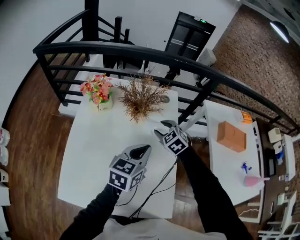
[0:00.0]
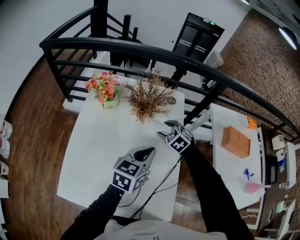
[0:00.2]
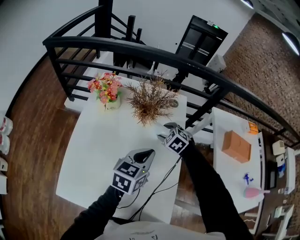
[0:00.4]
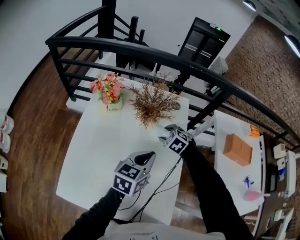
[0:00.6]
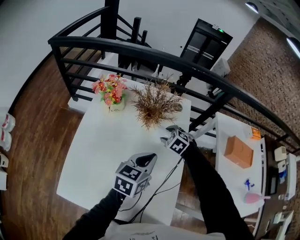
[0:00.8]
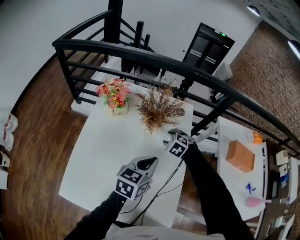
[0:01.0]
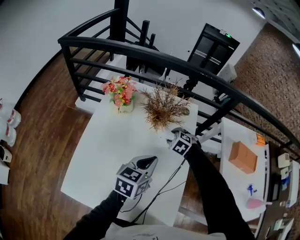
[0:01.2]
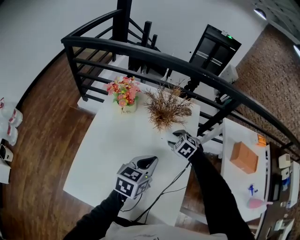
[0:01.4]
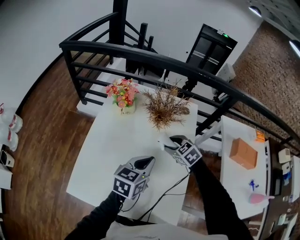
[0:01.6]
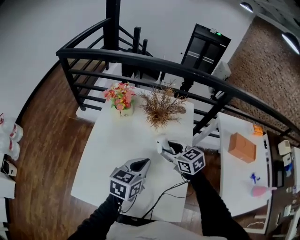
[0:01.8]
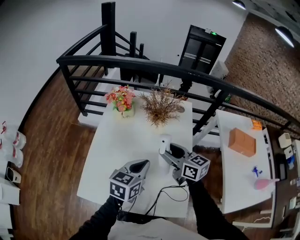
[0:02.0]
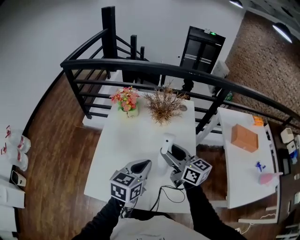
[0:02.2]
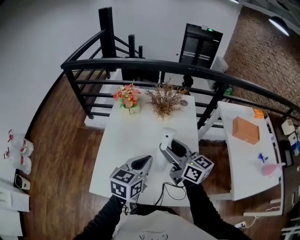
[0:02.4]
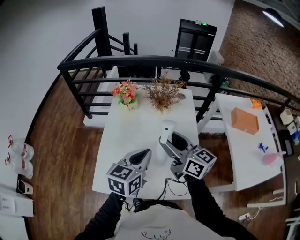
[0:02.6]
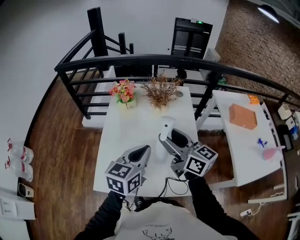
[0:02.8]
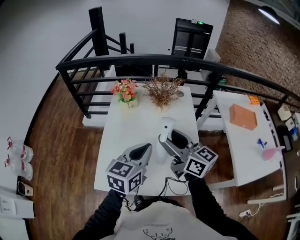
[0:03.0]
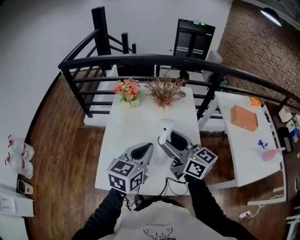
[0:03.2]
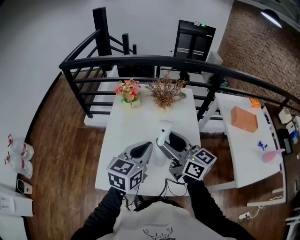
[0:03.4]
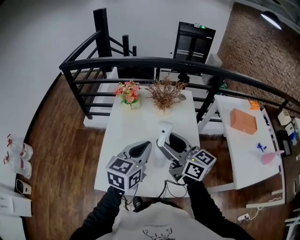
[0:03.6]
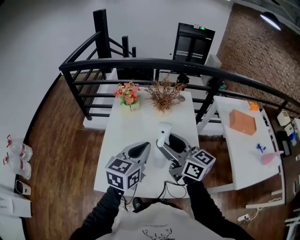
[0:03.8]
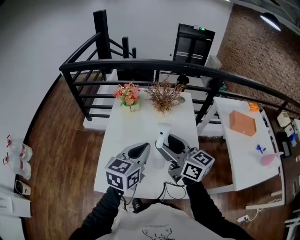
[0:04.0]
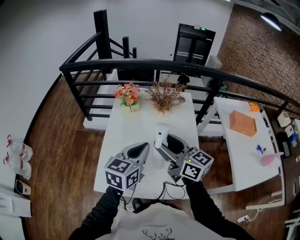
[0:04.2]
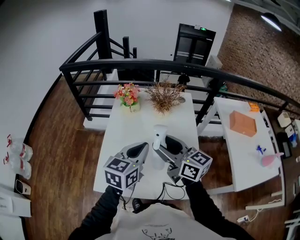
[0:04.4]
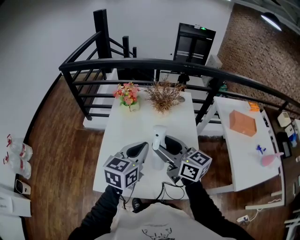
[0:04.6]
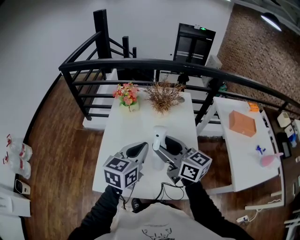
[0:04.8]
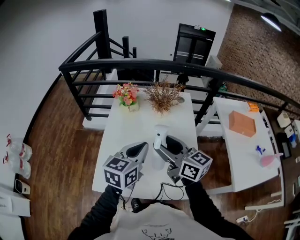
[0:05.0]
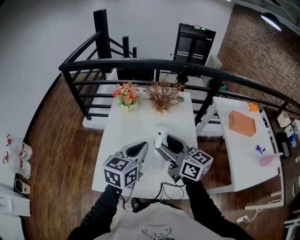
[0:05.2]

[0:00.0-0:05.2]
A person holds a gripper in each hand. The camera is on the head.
0:00.0 to 0:01.8: The left gripper moves to the left and backward, roughly 10 cm; the right gripper shifts roughly 15 cm backward, to the left and upward, and rotates about 40 degrees.
0:01.8 to 0:03.4: Both grippers travel together backward, upward and to the left, about 25 cm. The right gripper points its fingers some 40 degrees further upward.
0:03.4 to 0:05.2: The grippers move only a little.

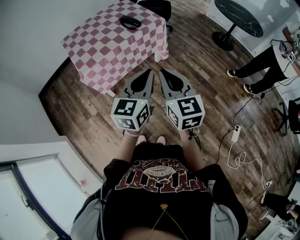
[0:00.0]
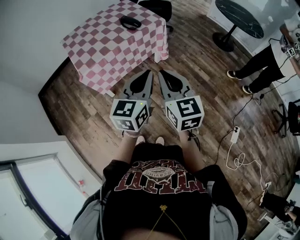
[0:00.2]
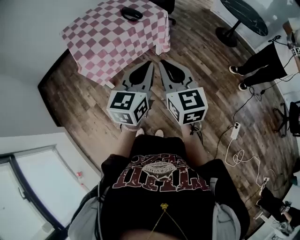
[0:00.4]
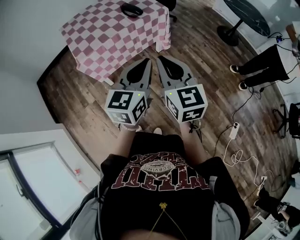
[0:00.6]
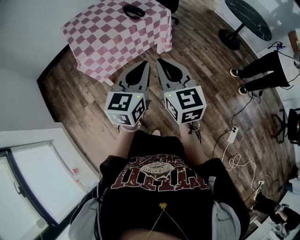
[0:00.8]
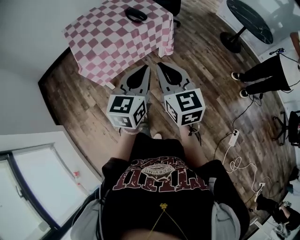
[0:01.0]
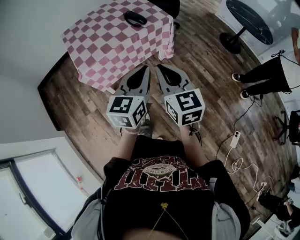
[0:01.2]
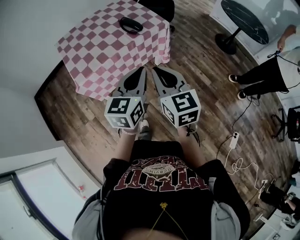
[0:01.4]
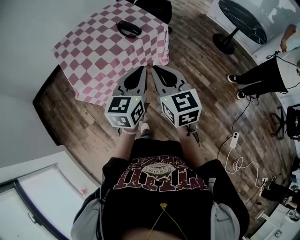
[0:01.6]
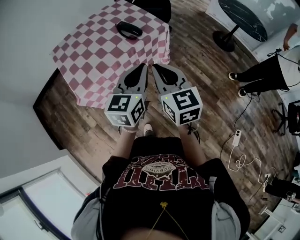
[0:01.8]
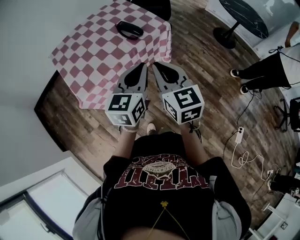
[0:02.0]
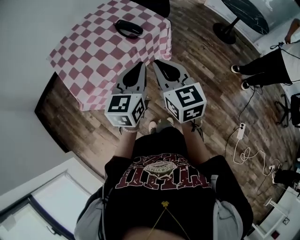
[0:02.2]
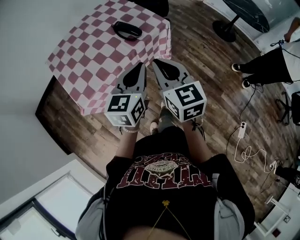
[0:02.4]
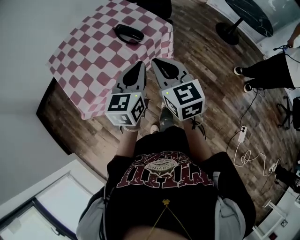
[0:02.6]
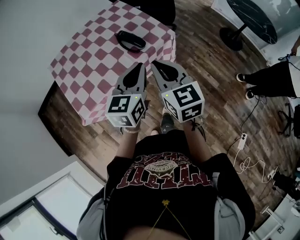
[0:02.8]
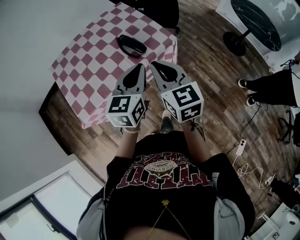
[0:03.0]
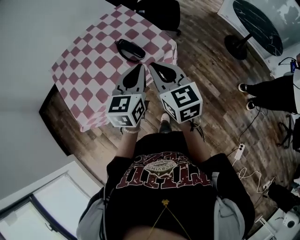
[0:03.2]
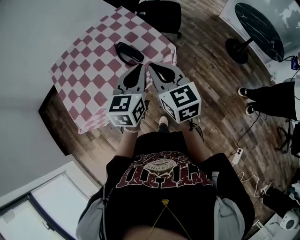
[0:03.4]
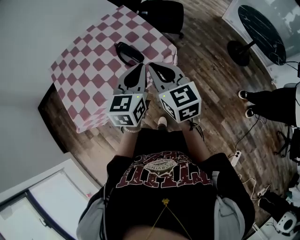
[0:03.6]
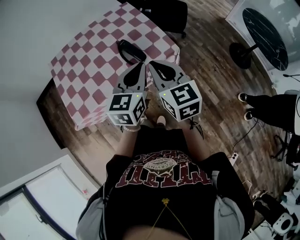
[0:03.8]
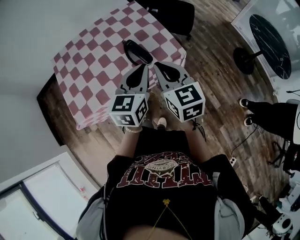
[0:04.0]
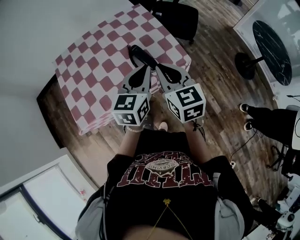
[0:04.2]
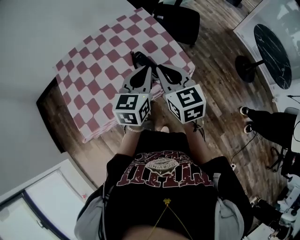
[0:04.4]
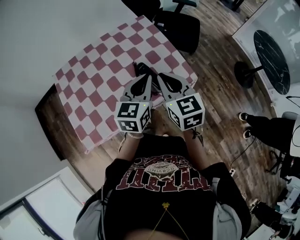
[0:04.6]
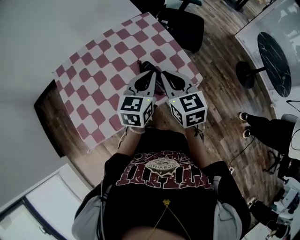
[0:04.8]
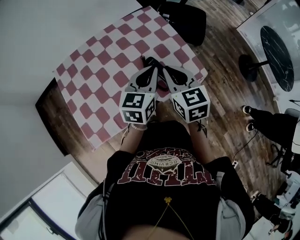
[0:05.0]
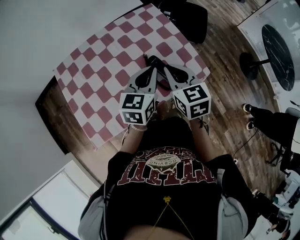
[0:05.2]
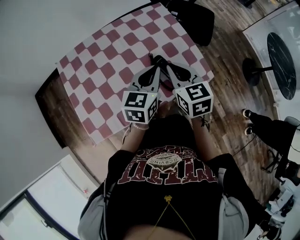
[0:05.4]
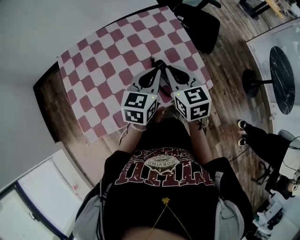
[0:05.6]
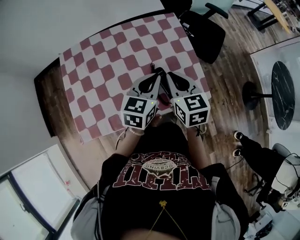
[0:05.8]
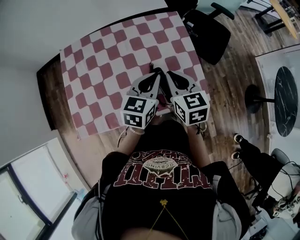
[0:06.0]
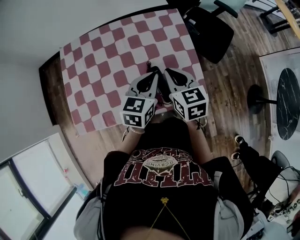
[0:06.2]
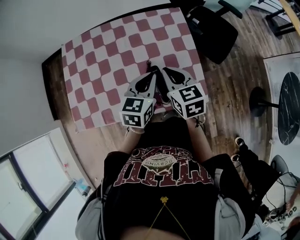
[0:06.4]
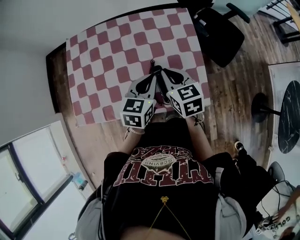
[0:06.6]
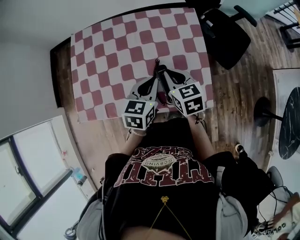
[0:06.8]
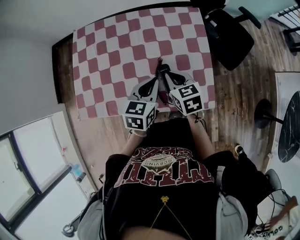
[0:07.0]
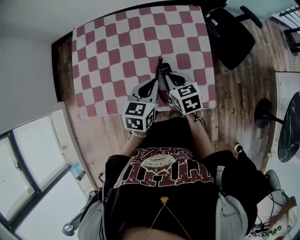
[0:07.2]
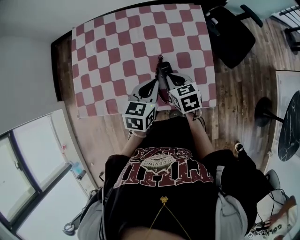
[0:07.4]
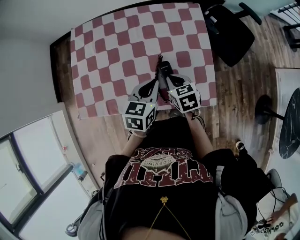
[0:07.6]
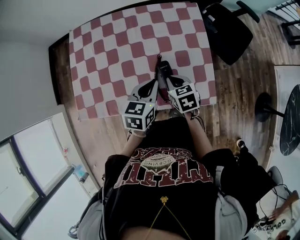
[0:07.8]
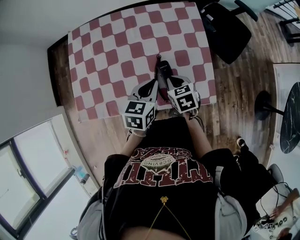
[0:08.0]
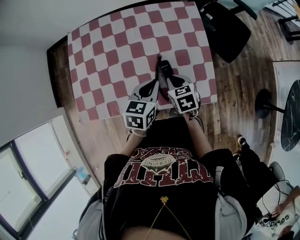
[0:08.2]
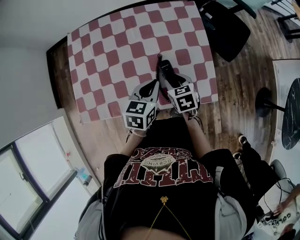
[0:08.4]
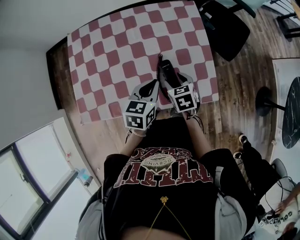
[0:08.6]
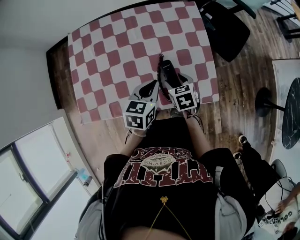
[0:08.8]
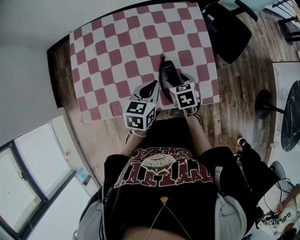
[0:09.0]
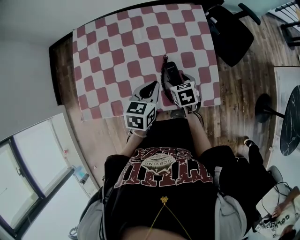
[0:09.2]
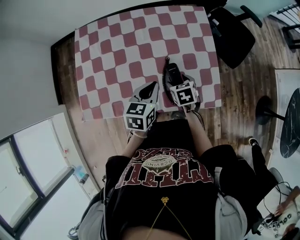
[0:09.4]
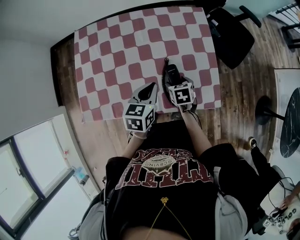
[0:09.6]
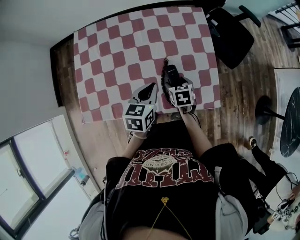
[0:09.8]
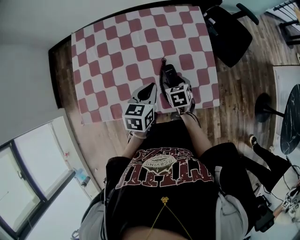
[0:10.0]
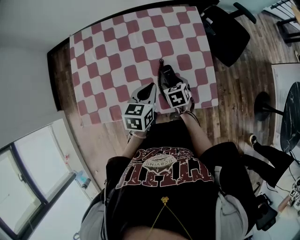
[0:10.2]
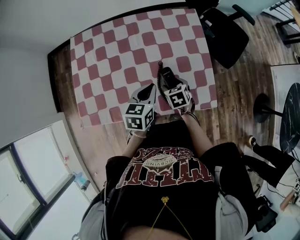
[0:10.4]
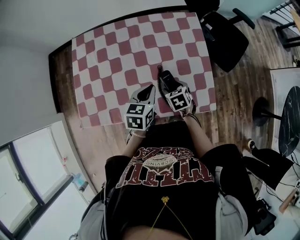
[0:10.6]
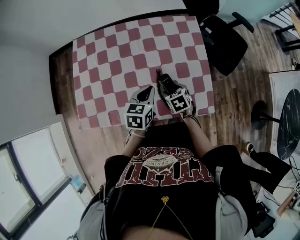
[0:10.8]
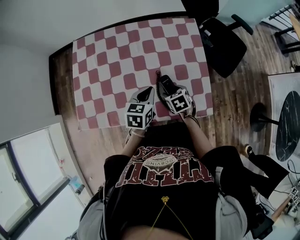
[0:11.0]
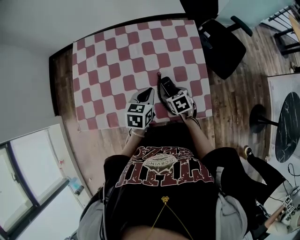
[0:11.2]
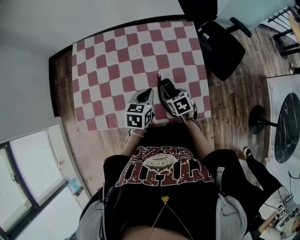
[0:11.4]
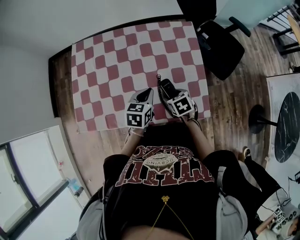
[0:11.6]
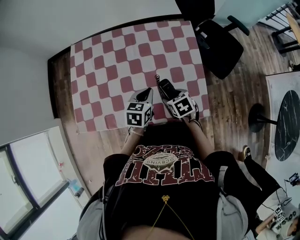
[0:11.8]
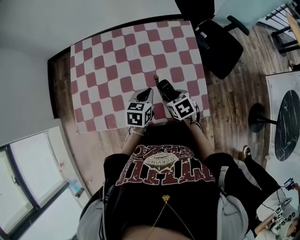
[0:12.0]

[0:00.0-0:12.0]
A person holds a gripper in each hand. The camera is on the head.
0:00.0 to 0:01.6: The two grippers go about 15 cm forward.
0:01.6 to 0:03.0: The grippers both shift forward by approximately 20 cm.
0:03.0 to 0:04.4: The grippers both shift forward by roughly 15 cm.
0:04.4 to 0:06.0: Both grippers move forward and downward, about 15 cm.
0:06.0 to 0:07.6: The left gripper heads downward, covering approximately 5 cm; the right gripper is displaced downward by approximately 15 cm, and changes its angle by roughly 20 degrees.
0:07.6 to 0:09.0: The right gripper opens up.
0:09.0 to 0:10.4: The grippers make only small movements.
0:10.4 to 0:12.0: The right gripper moves upward, about 5 cm.

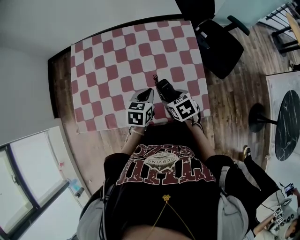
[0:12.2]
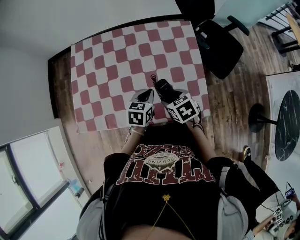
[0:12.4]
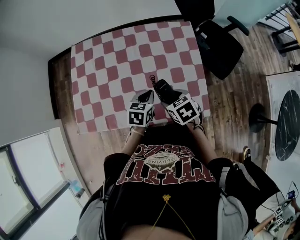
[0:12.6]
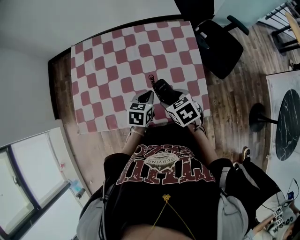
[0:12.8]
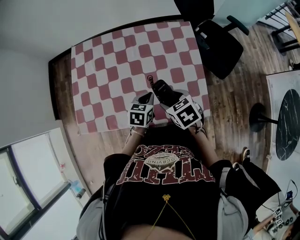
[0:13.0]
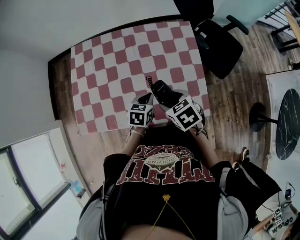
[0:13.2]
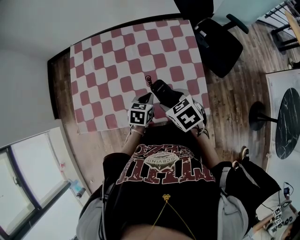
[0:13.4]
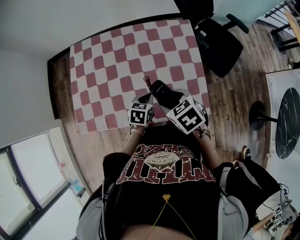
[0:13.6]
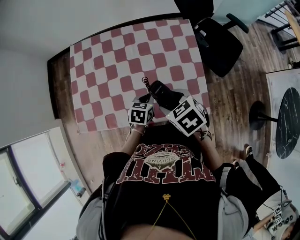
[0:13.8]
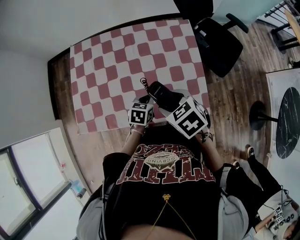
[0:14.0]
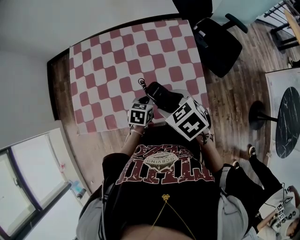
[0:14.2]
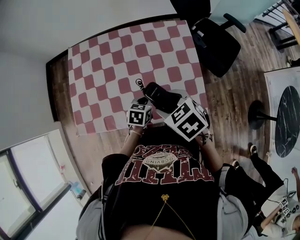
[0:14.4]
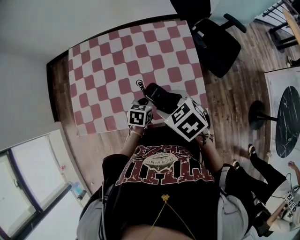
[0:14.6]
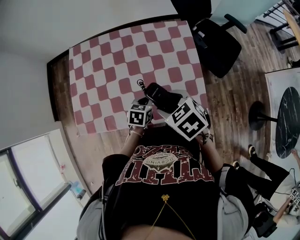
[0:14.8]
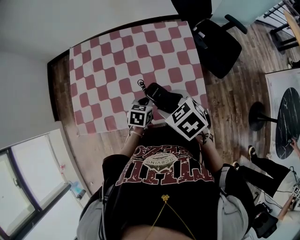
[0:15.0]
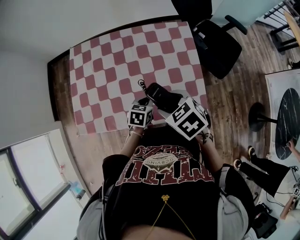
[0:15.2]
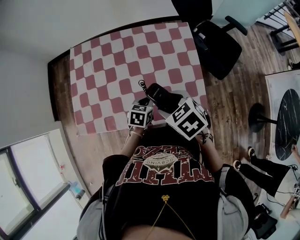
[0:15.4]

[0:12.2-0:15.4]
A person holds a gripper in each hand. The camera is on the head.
0:12.2 to 0:13.8: The right gripper heads upward, covering roughly 10 cm. Meanwhile the left gripper changes place by some 5 cm.
0:13.8 to 0:15.4: There are only small adjustments of the grippers.

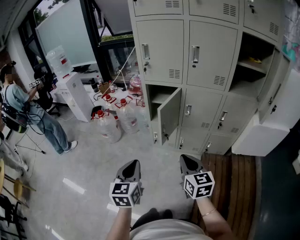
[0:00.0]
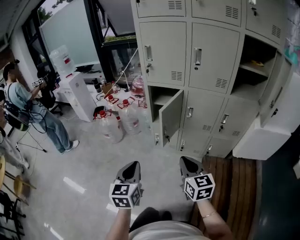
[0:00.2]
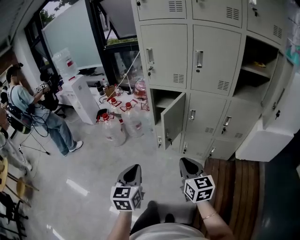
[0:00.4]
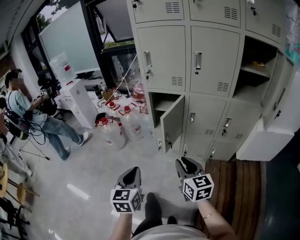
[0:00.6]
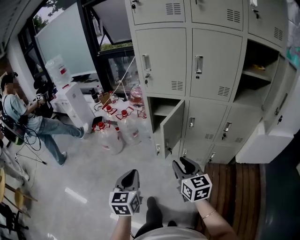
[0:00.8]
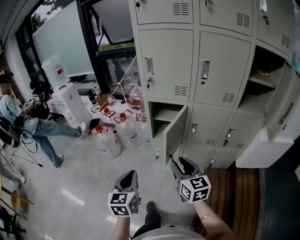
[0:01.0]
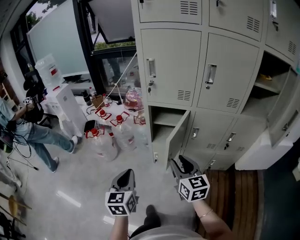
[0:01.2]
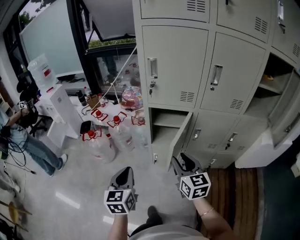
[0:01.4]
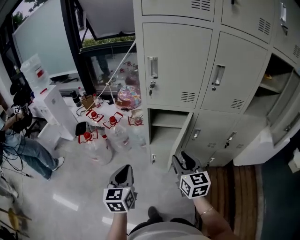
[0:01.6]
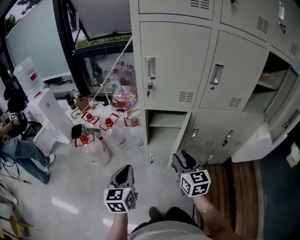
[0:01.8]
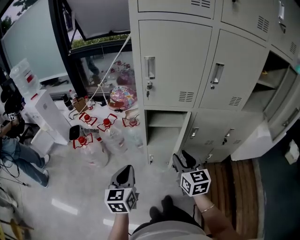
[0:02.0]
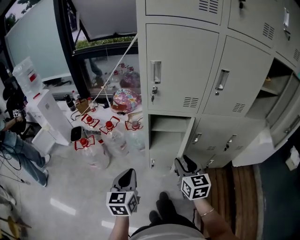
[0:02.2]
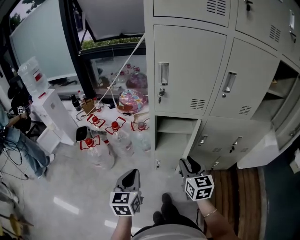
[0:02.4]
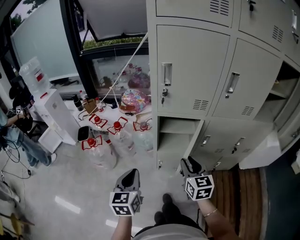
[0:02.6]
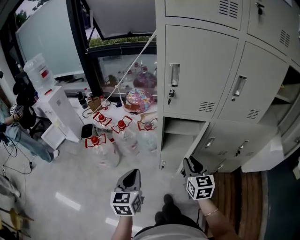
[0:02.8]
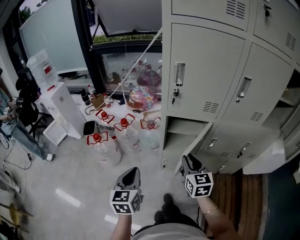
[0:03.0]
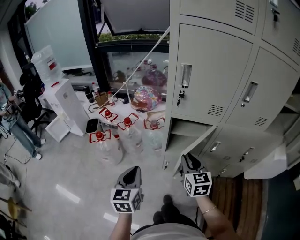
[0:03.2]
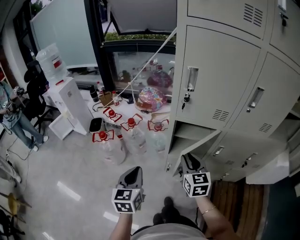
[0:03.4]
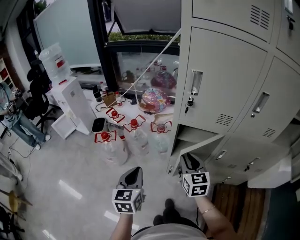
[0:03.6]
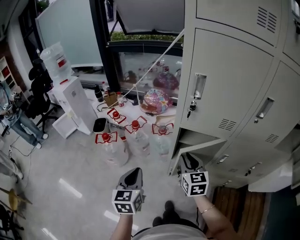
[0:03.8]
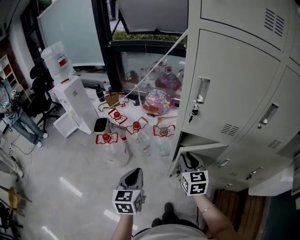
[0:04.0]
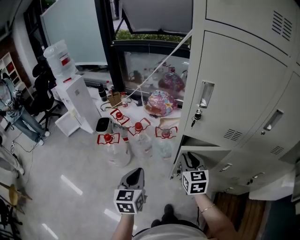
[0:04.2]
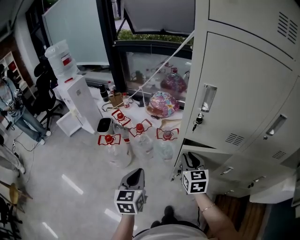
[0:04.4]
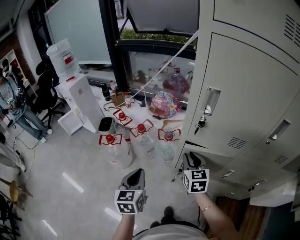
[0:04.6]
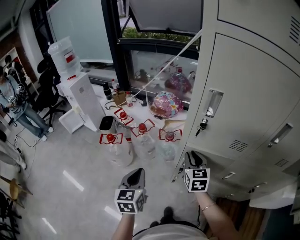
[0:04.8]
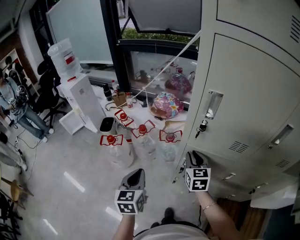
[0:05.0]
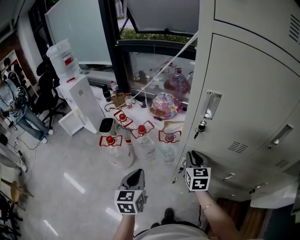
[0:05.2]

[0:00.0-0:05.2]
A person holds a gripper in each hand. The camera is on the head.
0:00.0 to 0:01.8: Both grippers travel together forward, some 30 cm. The right gripper opens.
0:01.8 to 0:03.4: The grippers both shift forward and to the left by approximately 10 cm.
0:03.4 to 0:05.2: The grippers both shift forward by approximately 15 cm.
